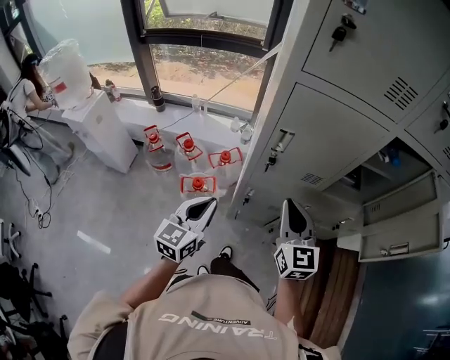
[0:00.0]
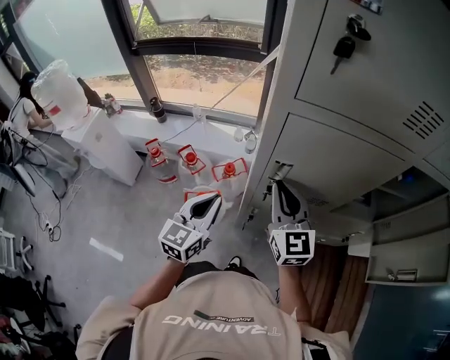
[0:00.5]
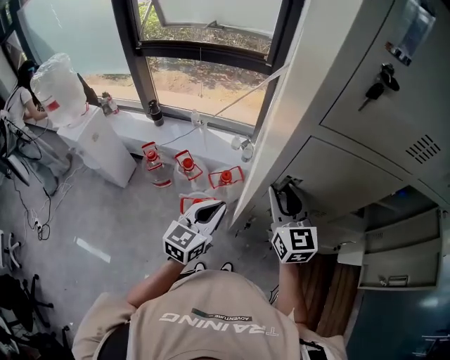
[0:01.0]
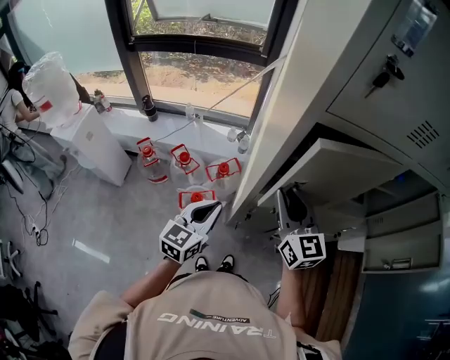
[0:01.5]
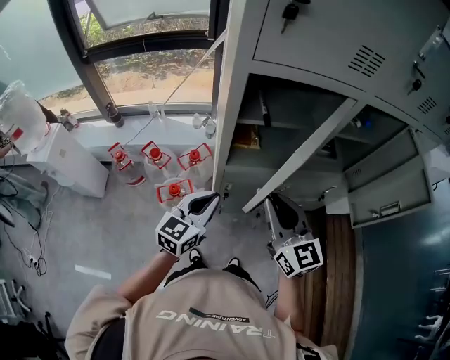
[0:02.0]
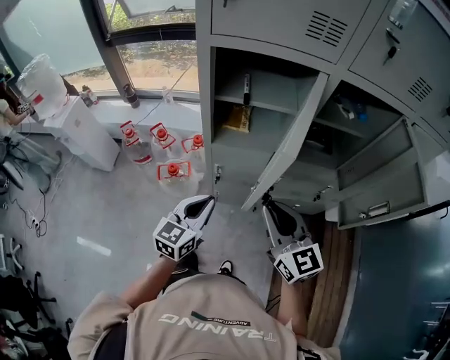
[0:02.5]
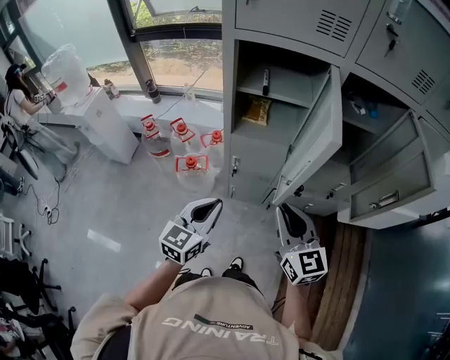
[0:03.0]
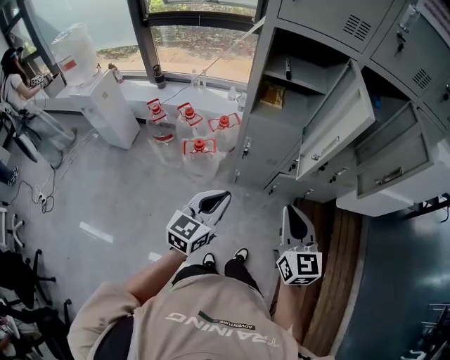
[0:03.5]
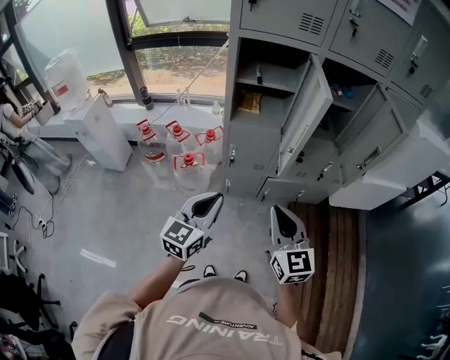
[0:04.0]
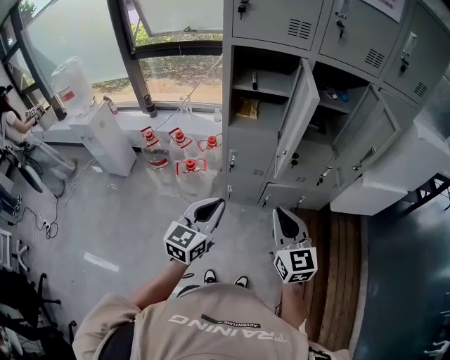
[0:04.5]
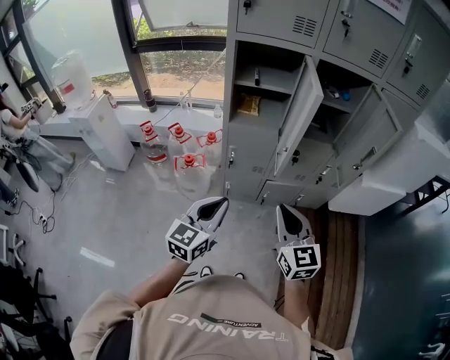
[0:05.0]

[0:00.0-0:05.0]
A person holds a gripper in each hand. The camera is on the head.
0:00.0 to 0:02.5: The left gripper shifts some 15 cm to the right. Meanwhile the right gripper moves to the right and backward, approximately 15 cm.
0:02.5 to 0:05.0: Both grippers move backward, some 20 cm.

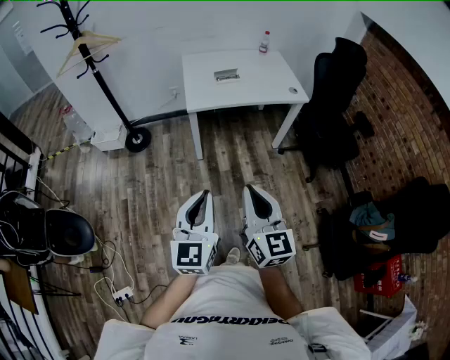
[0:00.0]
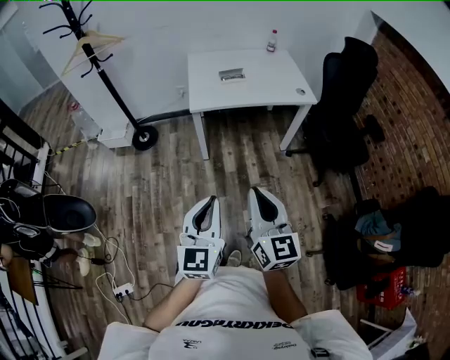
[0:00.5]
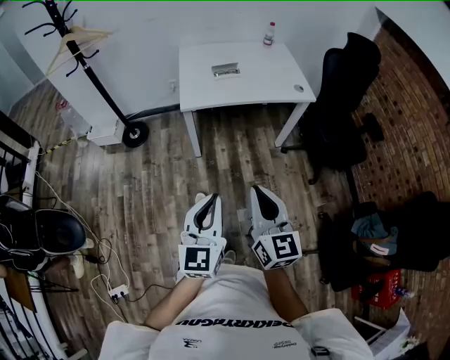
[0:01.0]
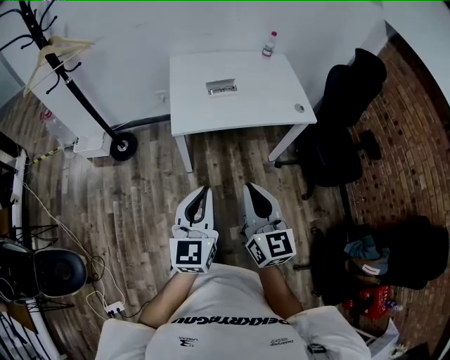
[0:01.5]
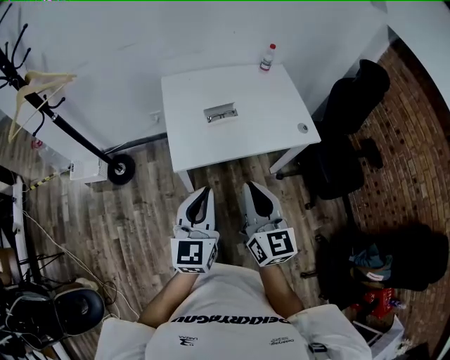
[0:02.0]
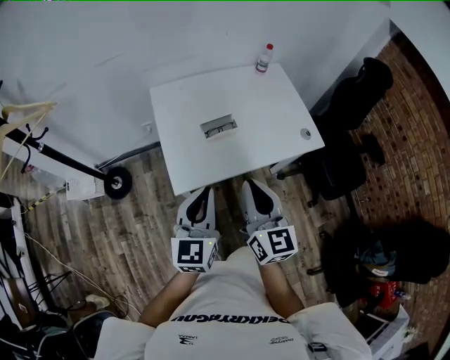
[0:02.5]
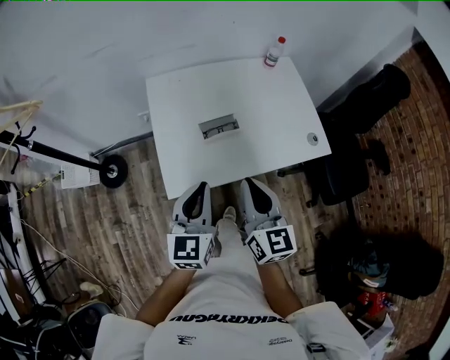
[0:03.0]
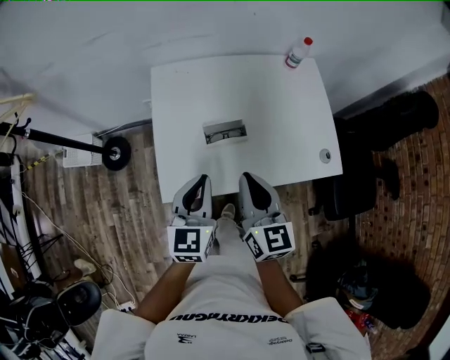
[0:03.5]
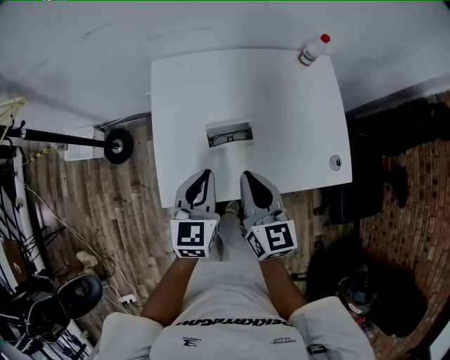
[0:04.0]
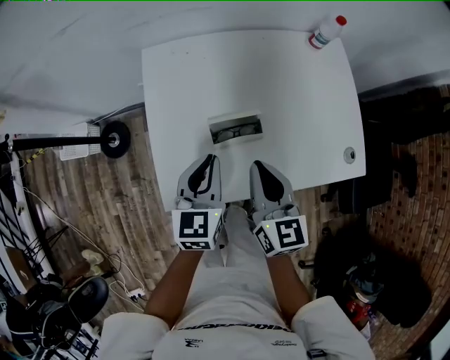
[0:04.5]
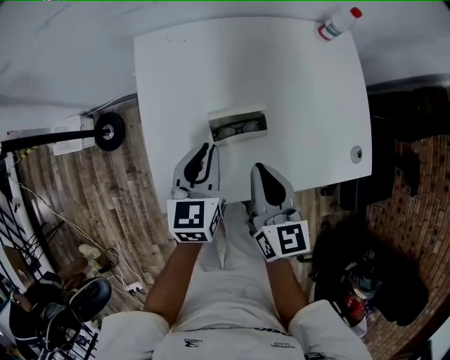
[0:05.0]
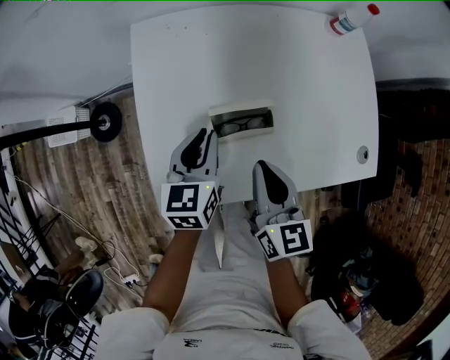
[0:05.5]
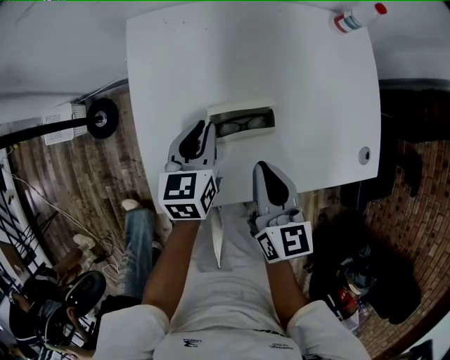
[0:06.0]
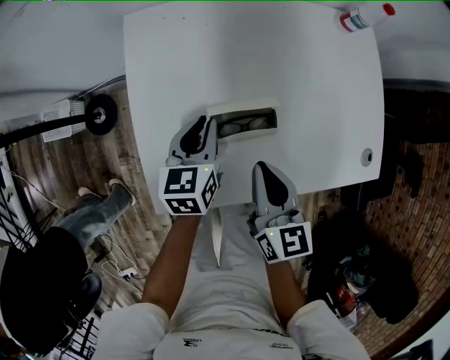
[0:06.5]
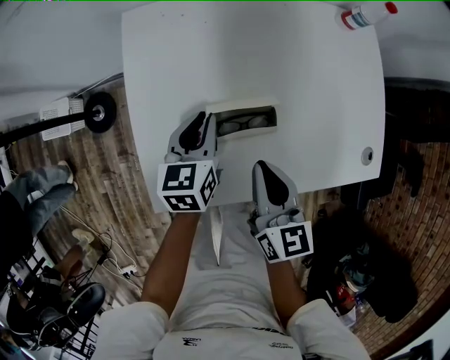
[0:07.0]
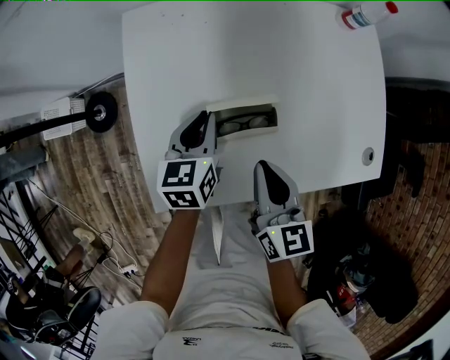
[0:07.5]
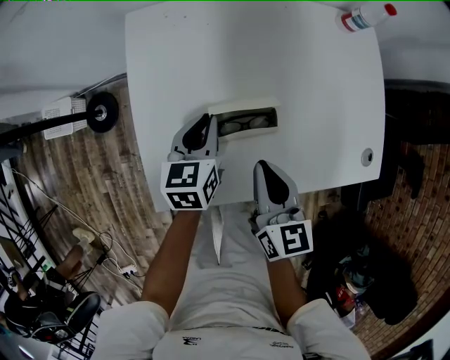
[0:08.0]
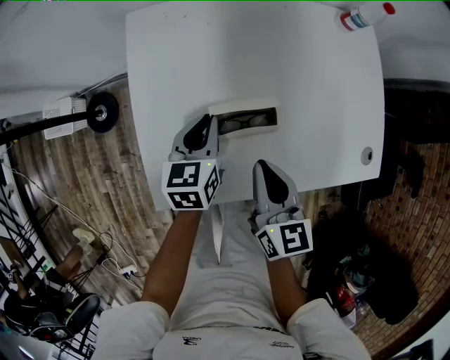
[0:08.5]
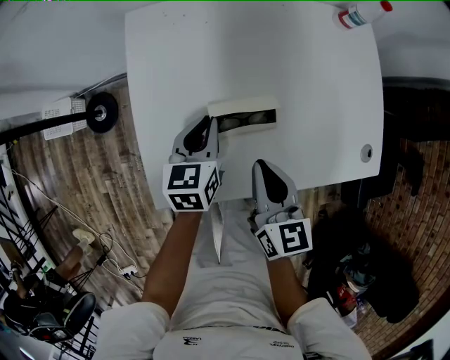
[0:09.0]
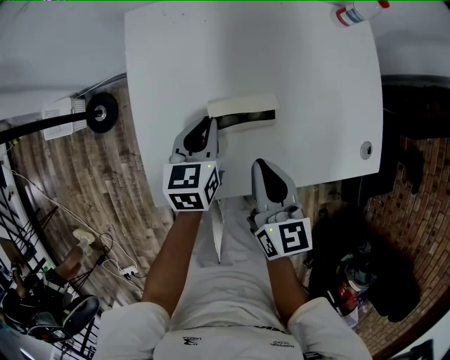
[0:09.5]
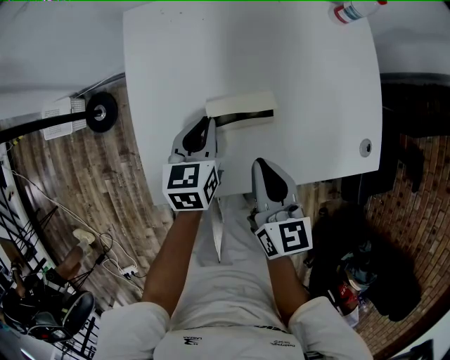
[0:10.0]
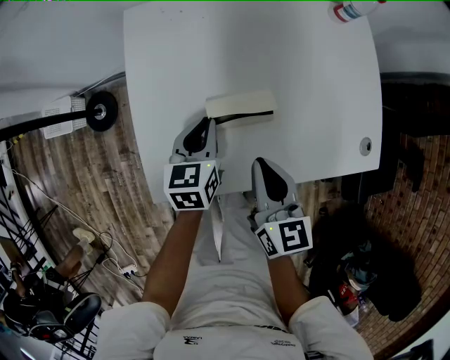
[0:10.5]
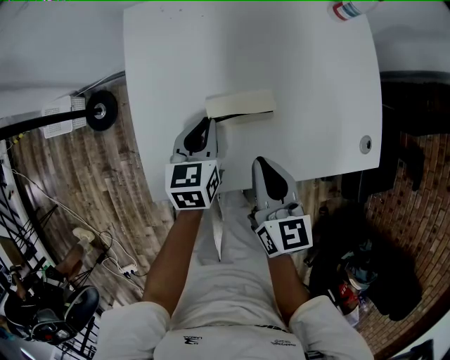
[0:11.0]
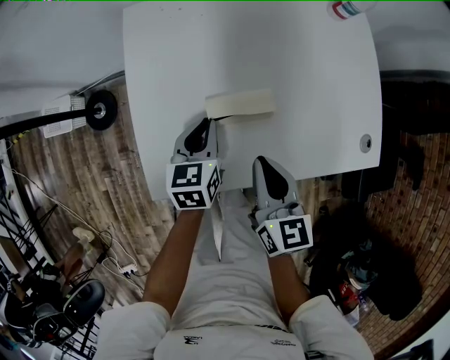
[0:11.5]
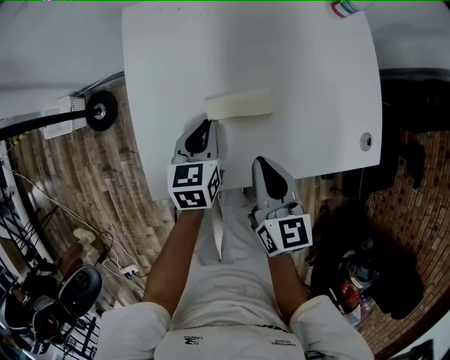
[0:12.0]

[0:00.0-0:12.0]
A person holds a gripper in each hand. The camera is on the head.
0:00.0 to 0:02.0: The pair of grippers is taken forward, approximately 50 cm.
0:02.0 to 0:04.0: The two grippers go about 40 cm forward and downward. The left gripper rotates about 20 degrees.
0:04.0 to 0:06.0: The grippers both shift downward and forward by approximately 20 cm.
0:06.0 to 0:10.0: The grippers move only a little.
0:10.0 to 0:12.0: There are only small adjustments of the grippers.

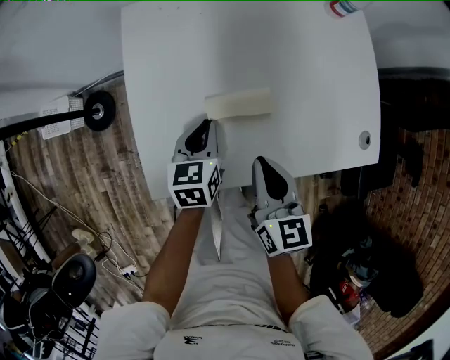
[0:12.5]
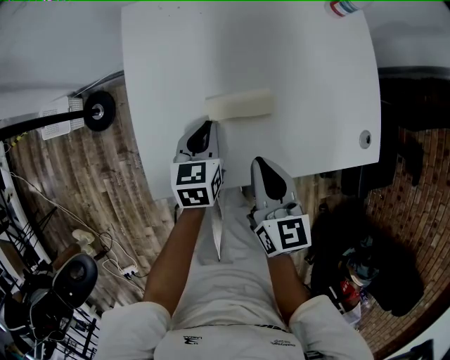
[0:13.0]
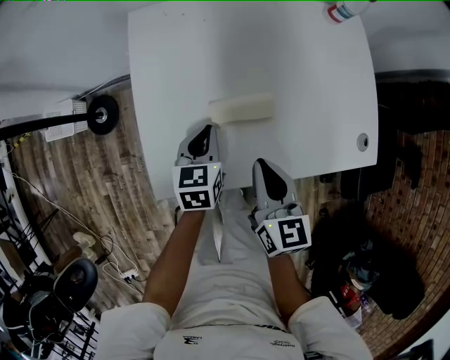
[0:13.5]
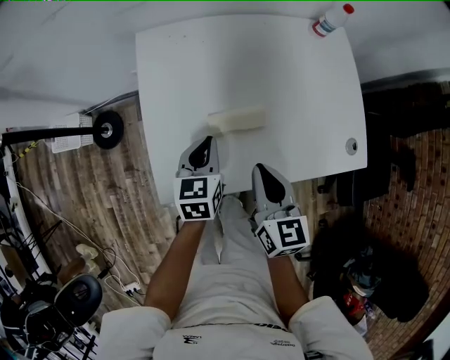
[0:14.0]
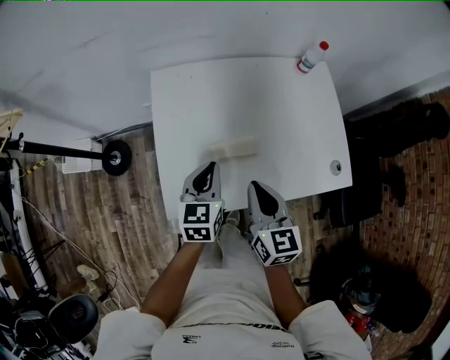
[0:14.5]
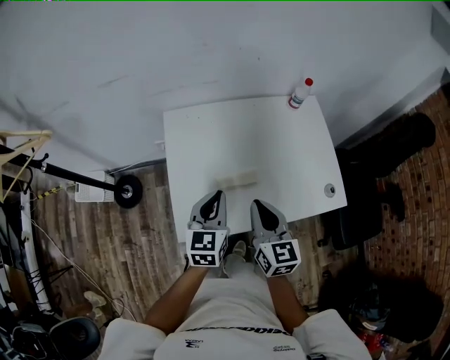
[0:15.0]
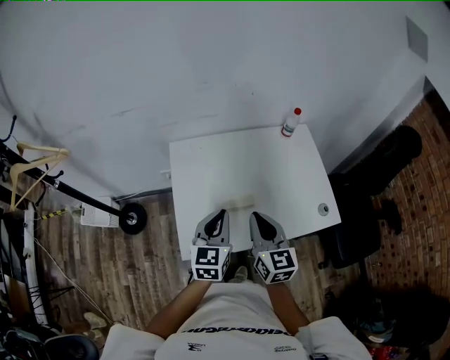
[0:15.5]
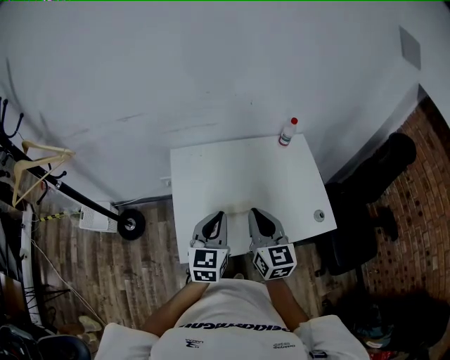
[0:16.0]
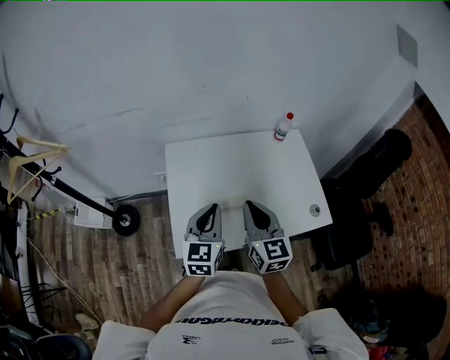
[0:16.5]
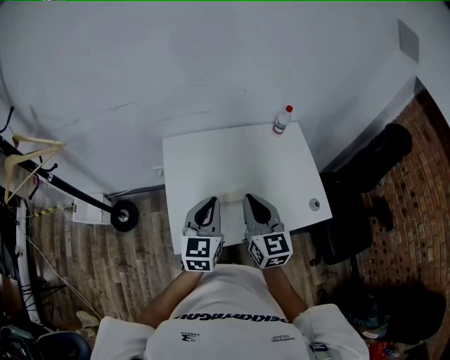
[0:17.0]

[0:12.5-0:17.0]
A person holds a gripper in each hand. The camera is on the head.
0:12.5 to 0:14.5: The two grippers go approximately 15 cm upward.
0:14.5 to 0:17.0: Both grippers move upward, about 15 cm.

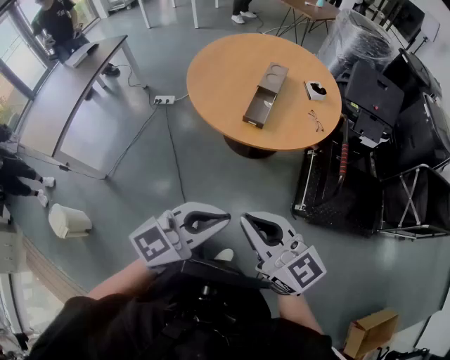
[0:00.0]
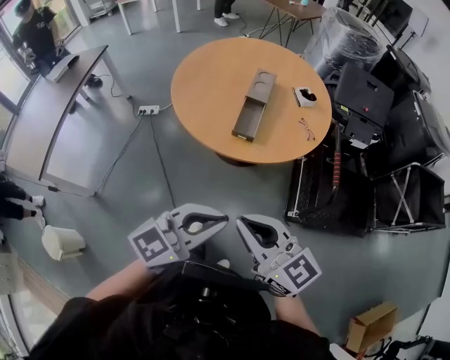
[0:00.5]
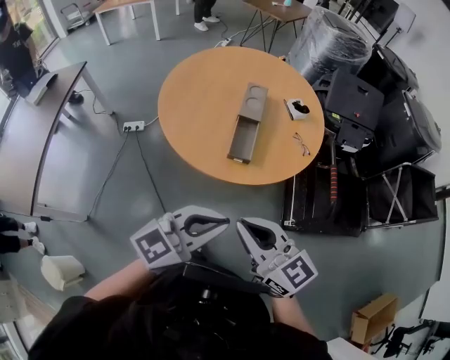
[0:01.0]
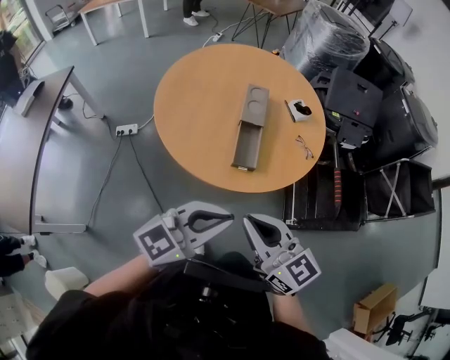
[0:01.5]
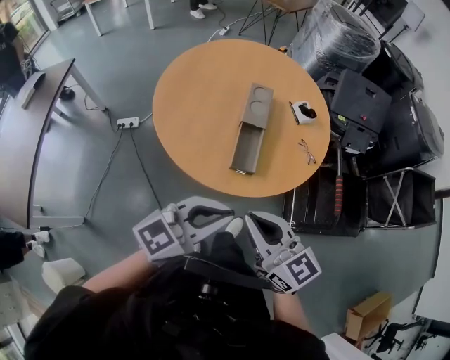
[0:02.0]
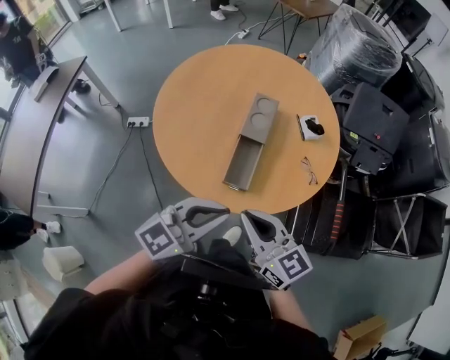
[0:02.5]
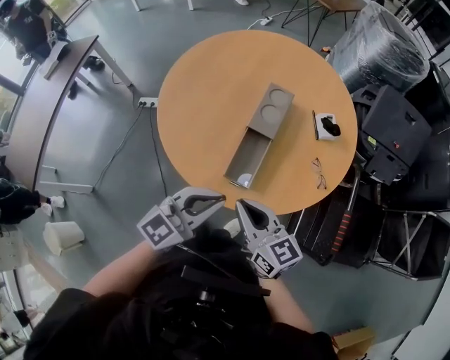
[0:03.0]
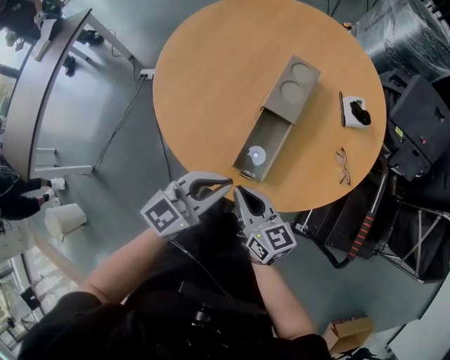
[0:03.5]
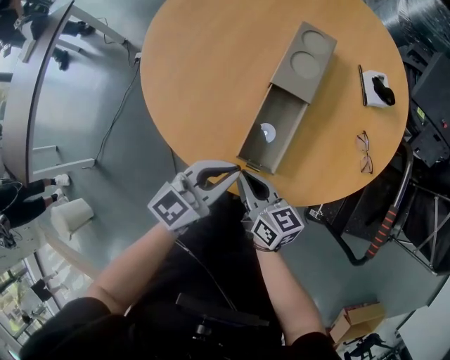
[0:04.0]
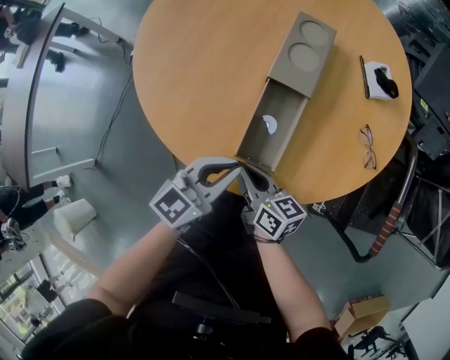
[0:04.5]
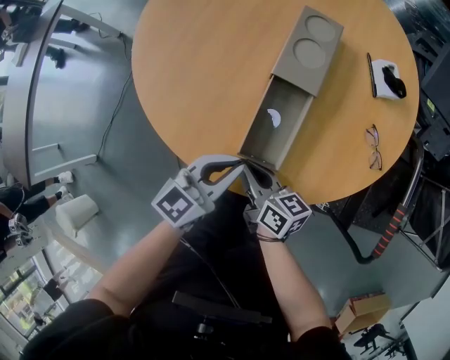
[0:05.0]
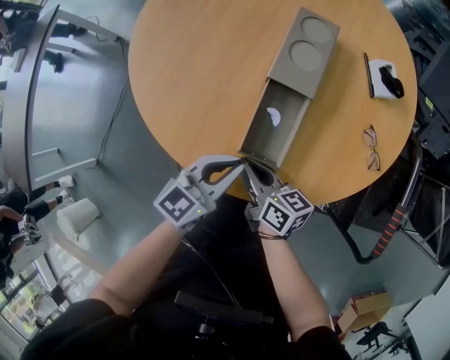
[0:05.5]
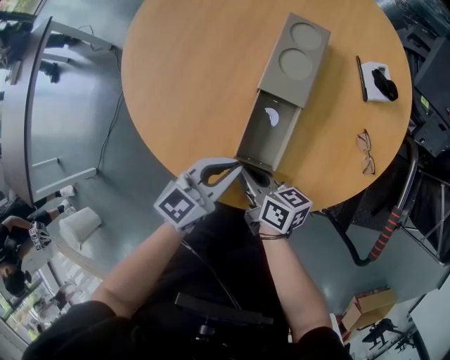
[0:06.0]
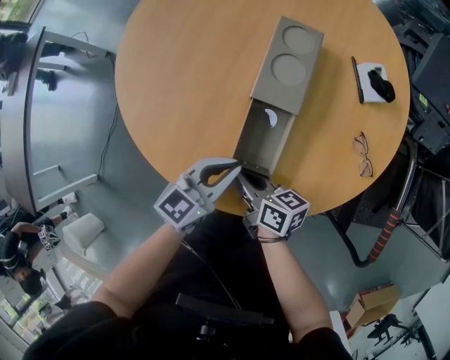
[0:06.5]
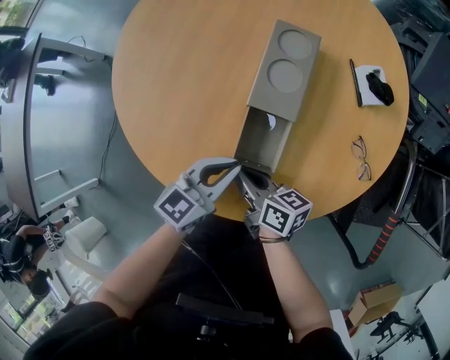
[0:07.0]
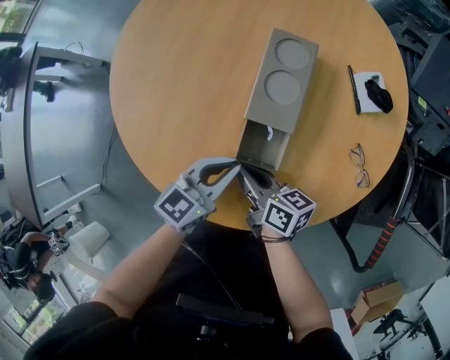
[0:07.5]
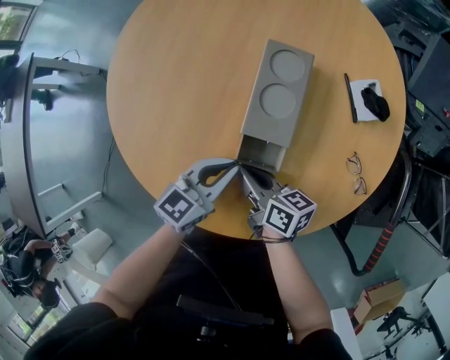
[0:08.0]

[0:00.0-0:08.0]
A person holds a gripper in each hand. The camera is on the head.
0:00.0 to 0:02.0: The two grippers go about 40 cm forward and to the left.
0:02.0 to 0:04.0: The grippers both shift downward and forward by some 40 cm. The right gripper rotates approximately 30 degrees; the left gripper rotates some 30 degrees.
0:04.0 to 0:06.0: The left gripper moves forward and downward, approximately 10 cm; the right gripper moves forward, about 5 cm.
0:06.0 to 0:08.0: Both grippers move forward, about 15 cm.
